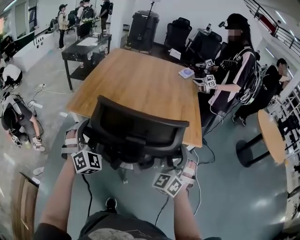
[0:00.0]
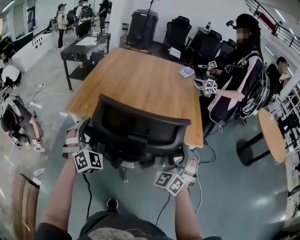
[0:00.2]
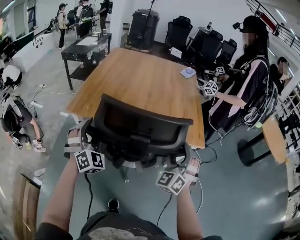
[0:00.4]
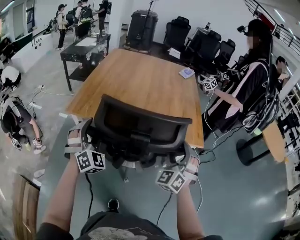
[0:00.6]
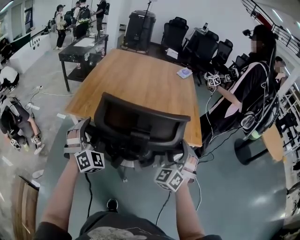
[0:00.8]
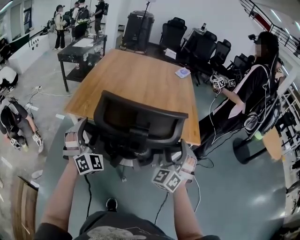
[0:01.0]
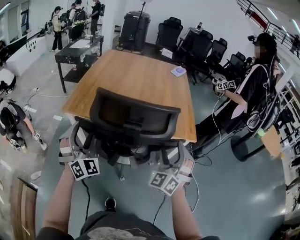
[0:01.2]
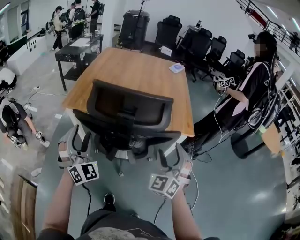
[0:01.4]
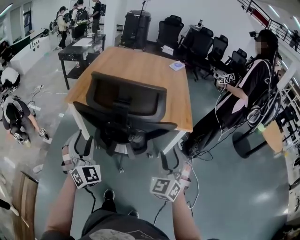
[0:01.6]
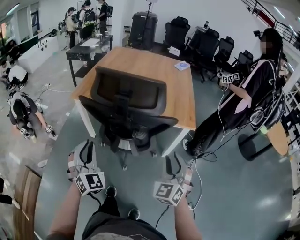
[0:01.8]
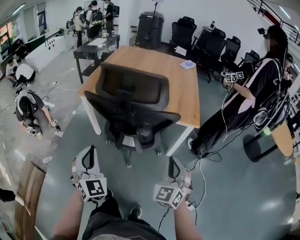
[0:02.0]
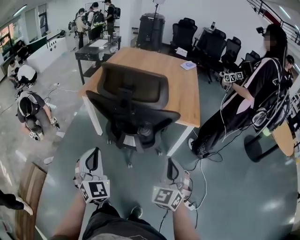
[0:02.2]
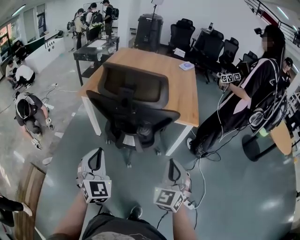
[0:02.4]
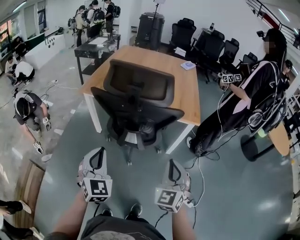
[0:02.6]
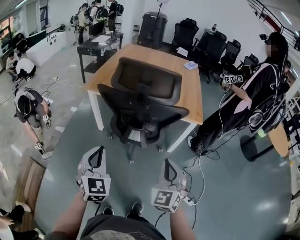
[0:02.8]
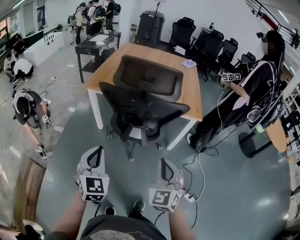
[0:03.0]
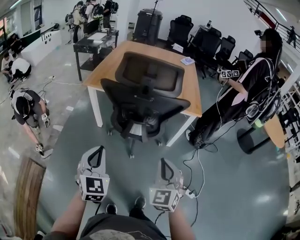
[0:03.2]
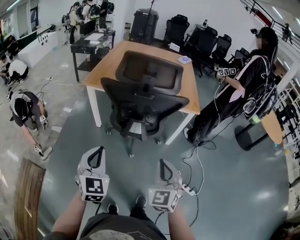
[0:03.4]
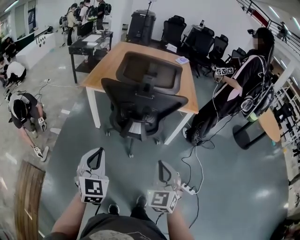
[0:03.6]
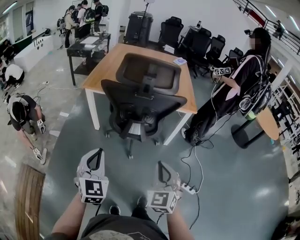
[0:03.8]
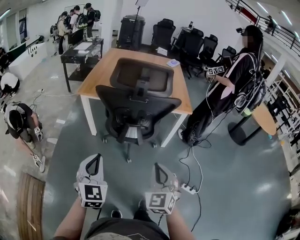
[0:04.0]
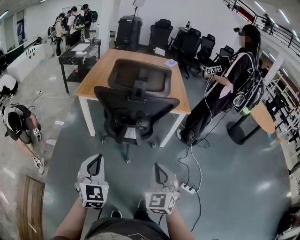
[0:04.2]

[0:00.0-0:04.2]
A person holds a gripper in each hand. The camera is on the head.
0.0 to 1.4 s: Both grippers travel together backward, about 5 cm.
1.4 to 2.8 s: Both grippers travel together backward, about 20 cm. The right gripper closes its fingers. Meanwhile the left gripper rotates roughly 30 degrees, and closes.
2.8 to 4.2 s: The right gripper moves backward and to the left, roughly 10 cm. Meanwhile the left gripper goes about 5 cm backward.

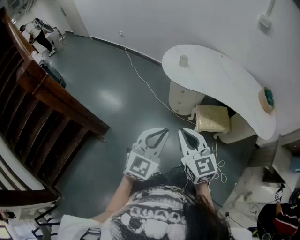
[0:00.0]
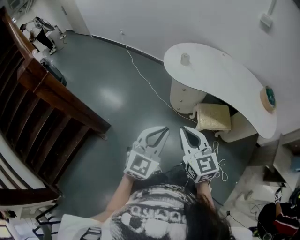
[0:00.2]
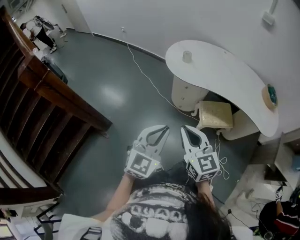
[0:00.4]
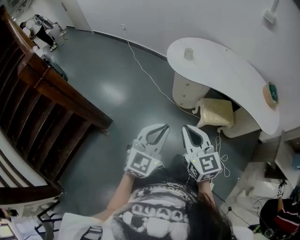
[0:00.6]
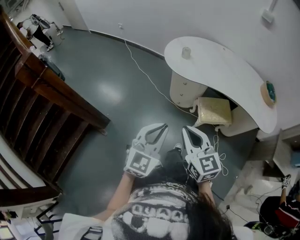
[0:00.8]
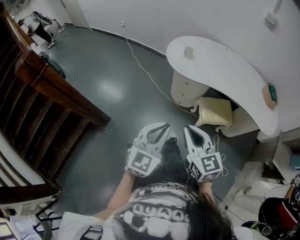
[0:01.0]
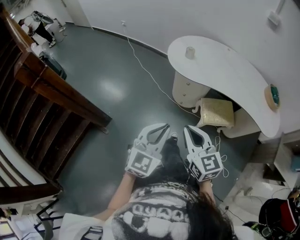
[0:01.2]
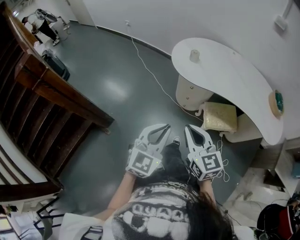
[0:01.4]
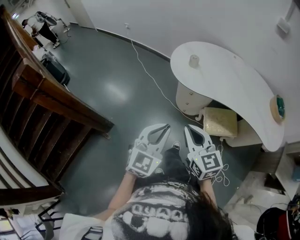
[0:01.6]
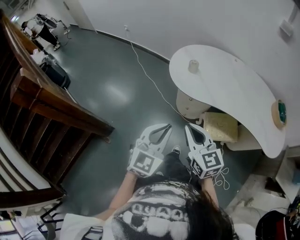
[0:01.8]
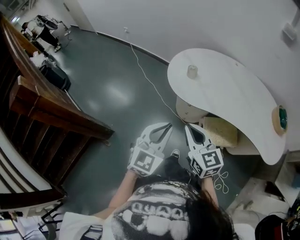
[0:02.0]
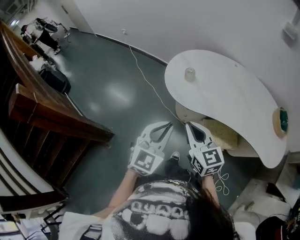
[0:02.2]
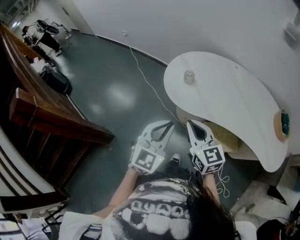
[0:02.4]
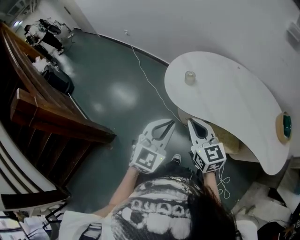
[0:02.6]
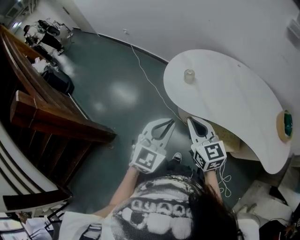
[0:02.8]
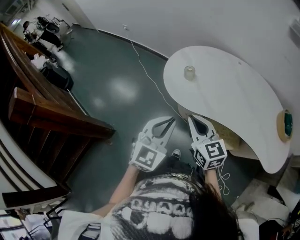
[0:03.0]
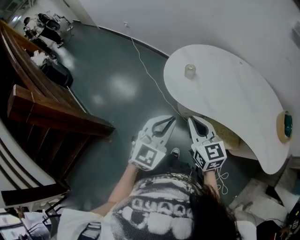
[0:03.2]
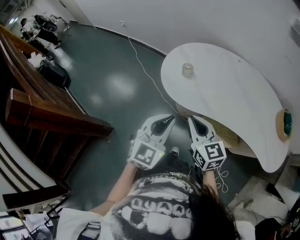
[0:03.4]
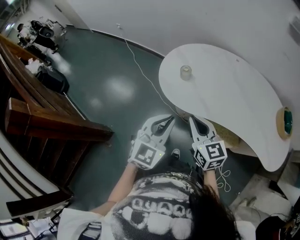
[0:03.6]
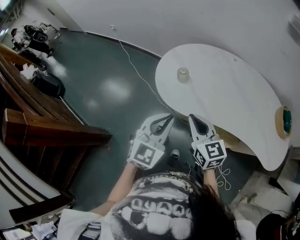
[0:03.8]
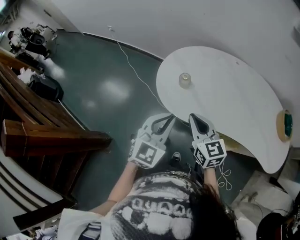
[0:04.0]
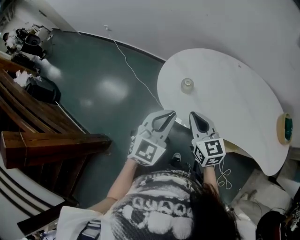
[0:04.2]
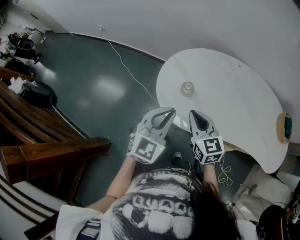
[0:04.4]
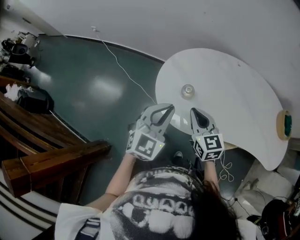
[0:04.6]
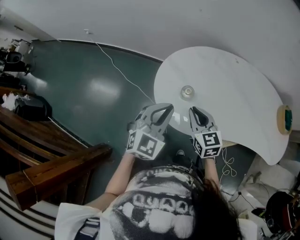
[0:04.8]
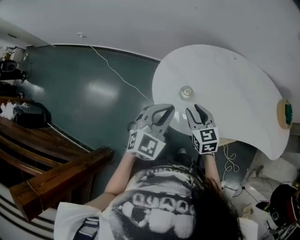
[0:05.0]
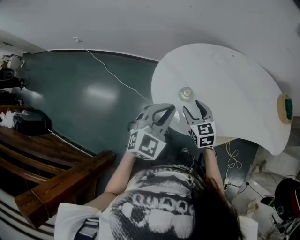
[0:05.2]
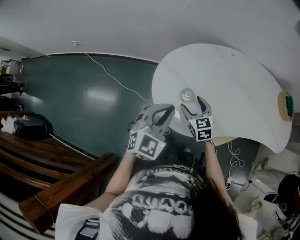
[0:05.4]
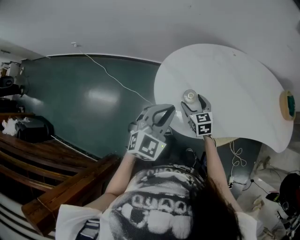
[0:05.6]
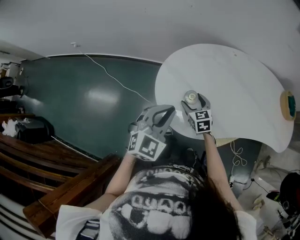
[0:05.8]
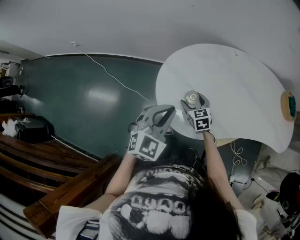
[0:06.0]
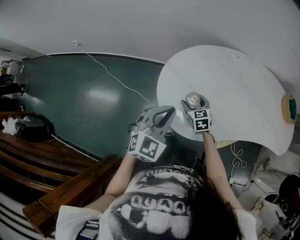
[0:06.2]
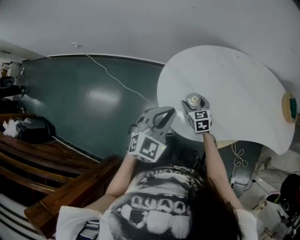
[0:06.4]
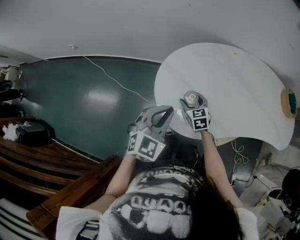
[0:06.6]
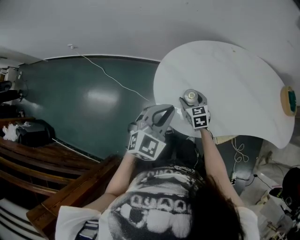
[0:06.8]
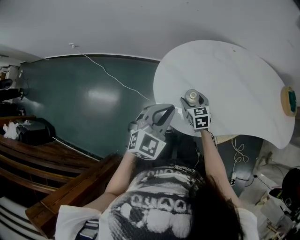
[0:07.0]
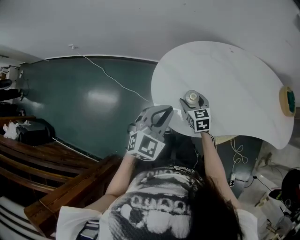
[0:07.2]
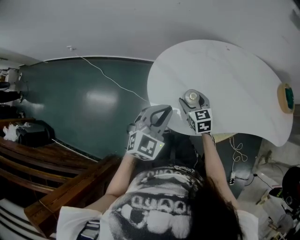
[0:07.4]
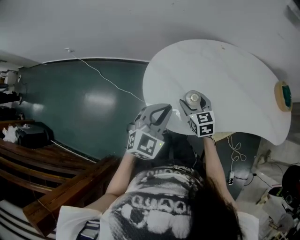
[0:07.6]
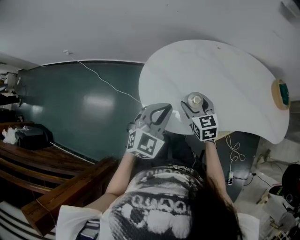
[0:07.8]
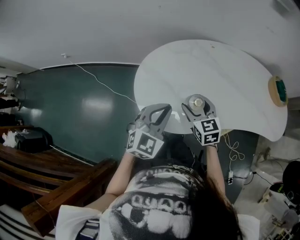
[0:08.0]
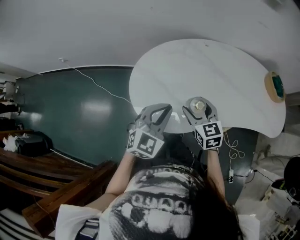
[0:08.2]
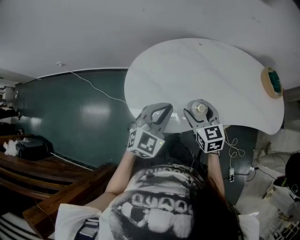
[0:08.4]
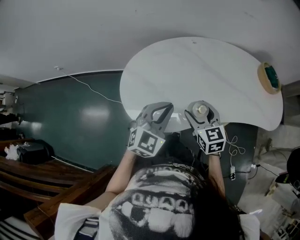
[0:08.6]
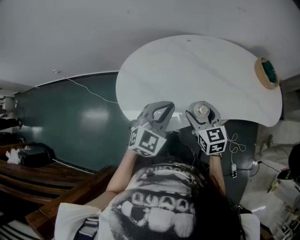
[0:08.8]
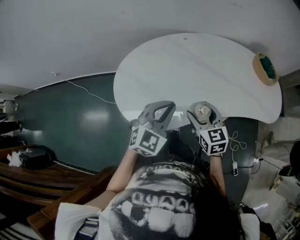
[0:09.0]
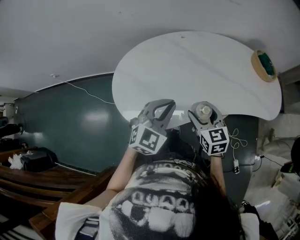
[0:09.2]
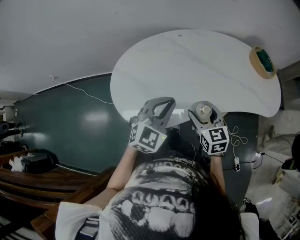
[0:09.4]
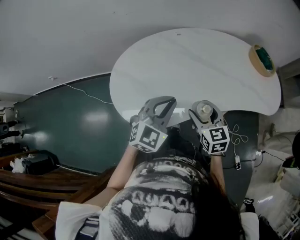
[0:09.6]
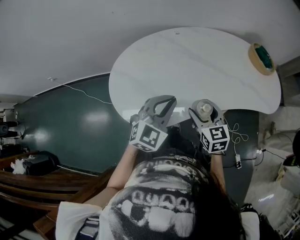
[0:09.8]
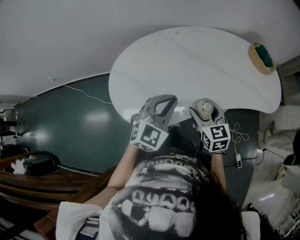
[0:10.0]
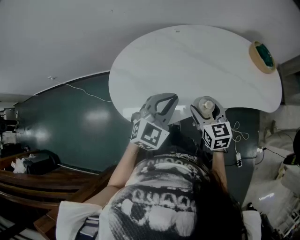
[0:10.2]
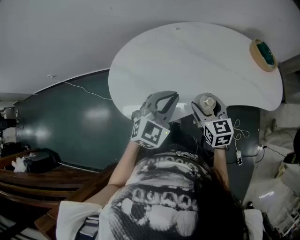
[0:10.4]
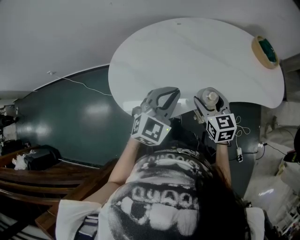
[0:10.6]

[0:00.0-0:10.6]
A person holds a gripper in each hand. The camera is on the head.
0.0 to 1.6 s: The two grippers go some 10 cm forward.
1.6 to 3.0 s: The two grippers go about 20 cm forward and to the right.
3.0 to 4.6 s: The two grippers go about 25 cm forward.
4.6 to 6.0 s: The right gripper shifts approximately 20 cm downward and forward, changes its angle by about 20 degrees, and opens up. Meanwhile the left gripper moves forward, roughly 5 cm.
6.0 to 7.6 s: The right gripper is displaced upward and to the right by some 10 cm. The left gripper shifts about 5 cm to the right.
7.6 to 9.0 s: The grippers both shift to the right by roughly 20 cm.
9.0 to 10.6 s: The grippers stay close to where they were, moving slightly.

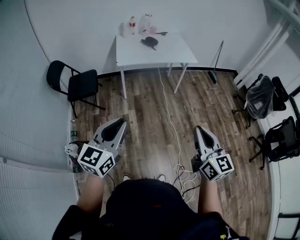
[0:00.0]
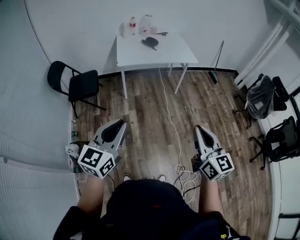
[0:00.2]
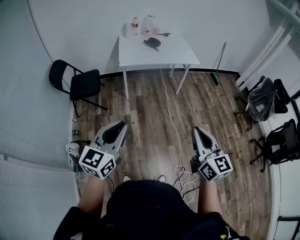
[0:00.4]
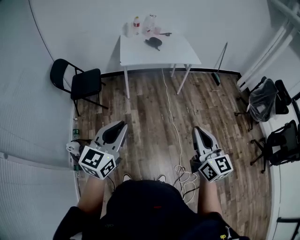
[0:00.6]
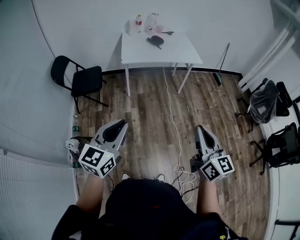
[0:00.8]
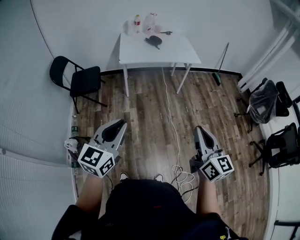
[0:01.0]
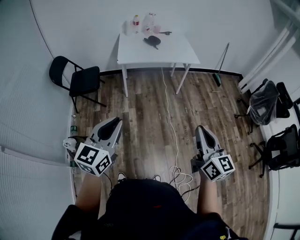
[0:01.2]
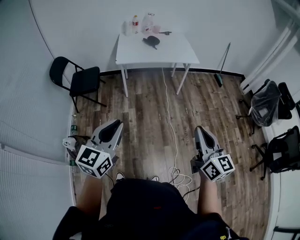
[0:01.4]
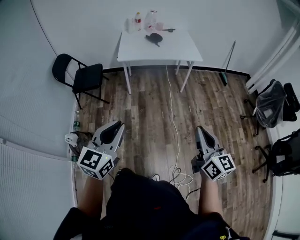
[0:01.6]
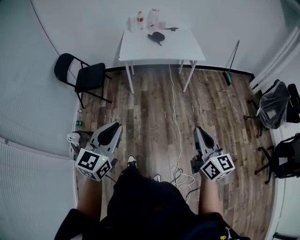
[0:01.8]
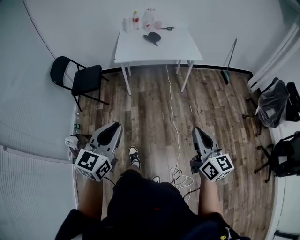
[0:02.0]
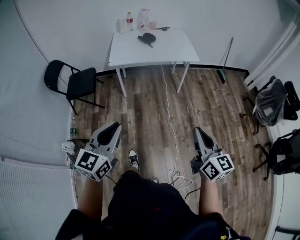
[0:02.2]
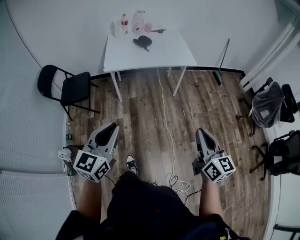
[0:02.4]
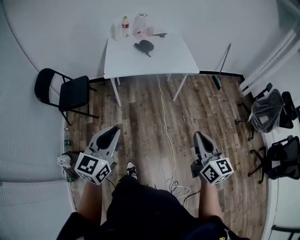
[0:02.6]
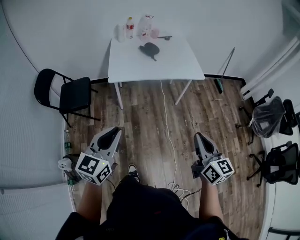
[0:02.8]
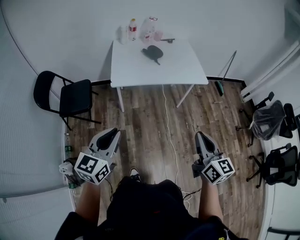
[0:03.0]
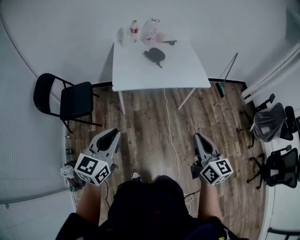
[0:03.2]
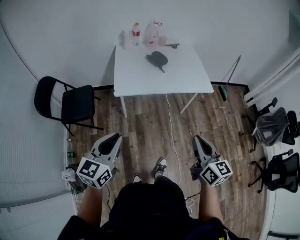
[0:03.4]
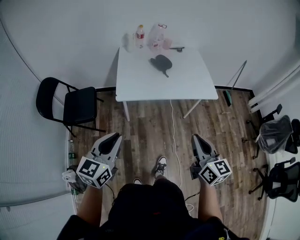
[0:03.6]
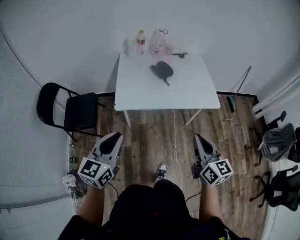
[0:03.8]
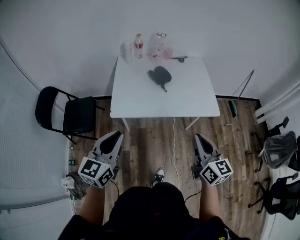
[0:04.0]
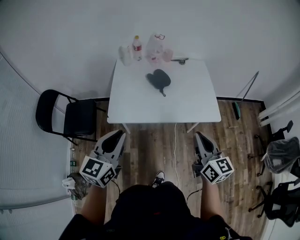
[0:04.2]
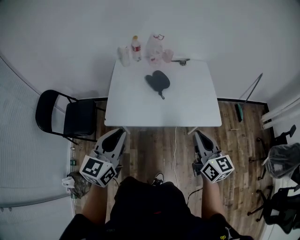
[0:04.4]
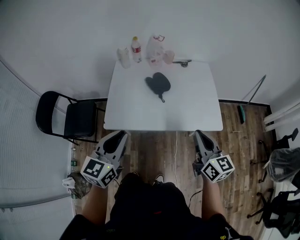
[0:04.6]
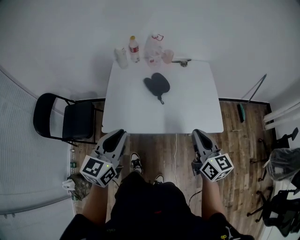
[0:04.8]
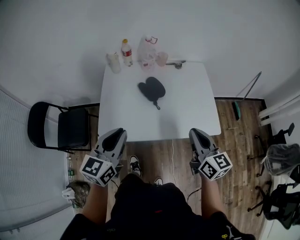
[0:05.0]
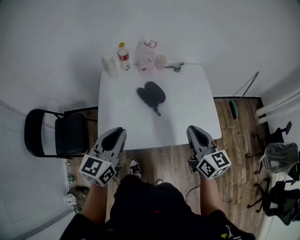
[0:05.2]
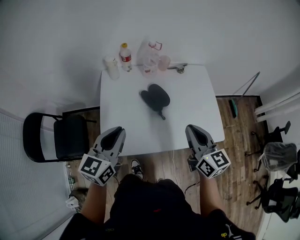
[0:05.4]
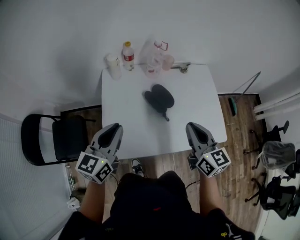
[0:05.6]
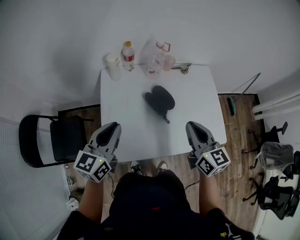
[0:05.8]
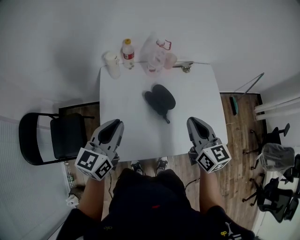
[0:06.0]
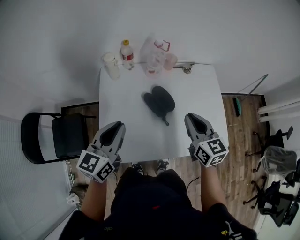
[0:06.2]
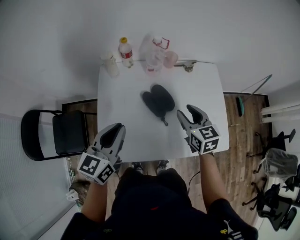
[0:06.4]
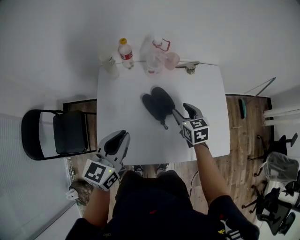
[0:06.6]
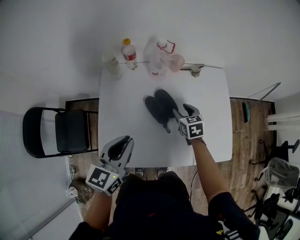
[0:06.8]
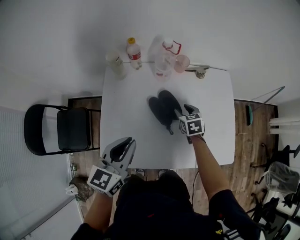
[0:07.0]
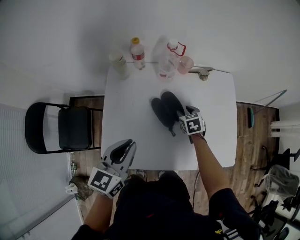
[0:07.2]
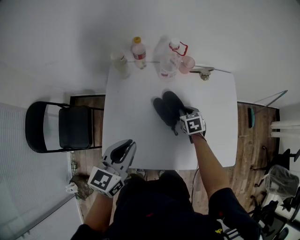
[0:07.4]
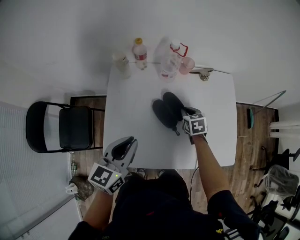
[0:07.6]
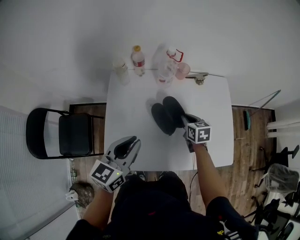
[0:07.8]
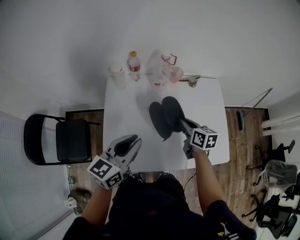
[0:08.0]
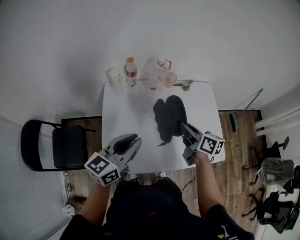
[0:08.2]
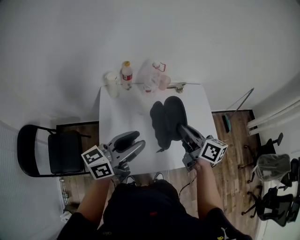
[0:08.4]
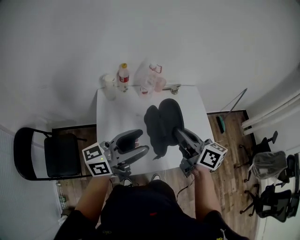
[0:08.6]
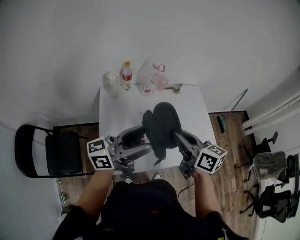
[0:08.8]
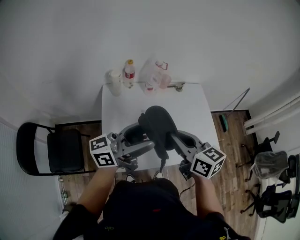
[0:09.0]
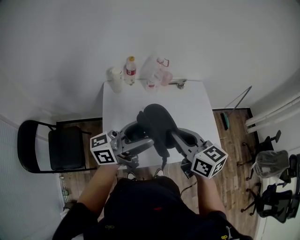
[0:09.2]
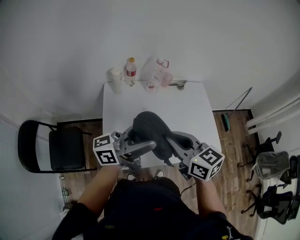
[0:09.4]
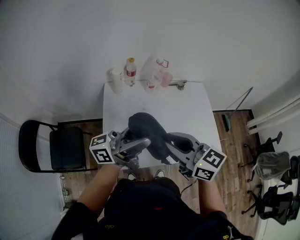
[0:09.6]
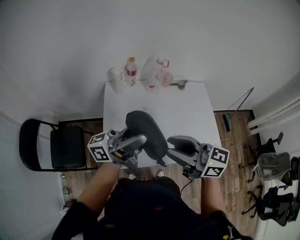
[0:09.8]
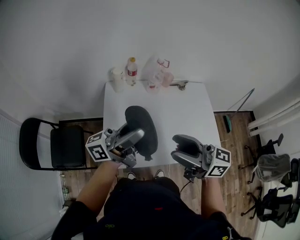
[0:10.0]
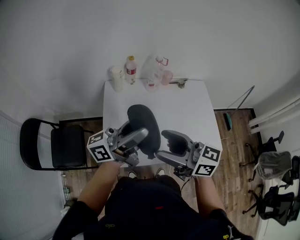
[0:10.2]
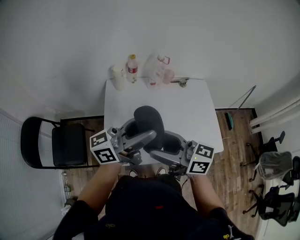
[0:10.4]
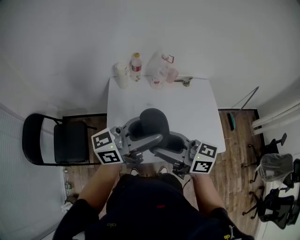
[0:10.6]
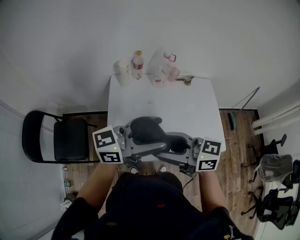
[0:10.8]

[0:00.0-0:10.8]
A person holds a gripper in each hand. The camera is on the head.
0.0 to 1.6 s: The grippers both shift to the right by about 10 cm.
1.6 to 3.0 s: The left gripper travels forward and to the left by approximately 35 cm; the right gripper moves forward, roughly 30 cm.
3.0 to 4.6 s: The two grippers go some 40 cm forward.
4.6 to 6.2 s: The right gripper is displaced forward and to the left by some 30 cm, while the left gripper heads forward, covering roughly 30 cm.
6.2 to 7.8 s: The right gripper is displaced downward and forward by roughly 20 cm, swivels approximately 20 degrees, and opens, then closes once more.
7.8 to 9.2 s: The left gripper travels upward and backward by about 15 cm, tips its fingers upward by roughly 40 degrees, and opens up. Meanwhile the right gripper heads upward and backward, covering about 35 cm, and rotates approximately 30 degrees.
9.2 to 10.8 s: The right gripper changes place by about 10 cm, turns by roughly 40 degrees, and opens.
